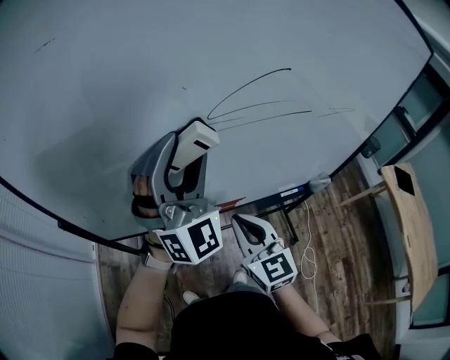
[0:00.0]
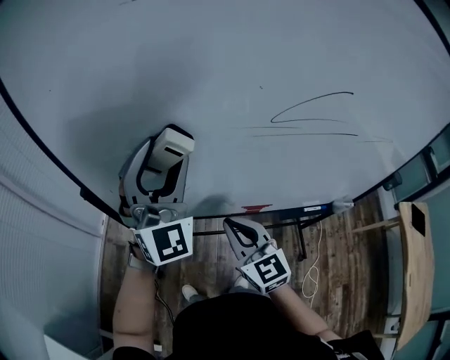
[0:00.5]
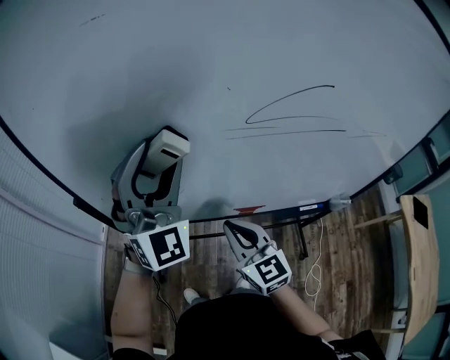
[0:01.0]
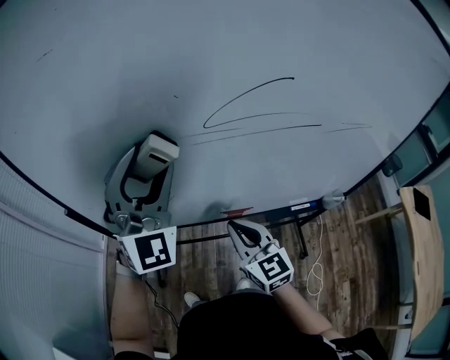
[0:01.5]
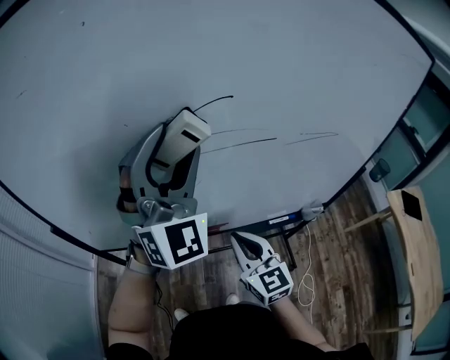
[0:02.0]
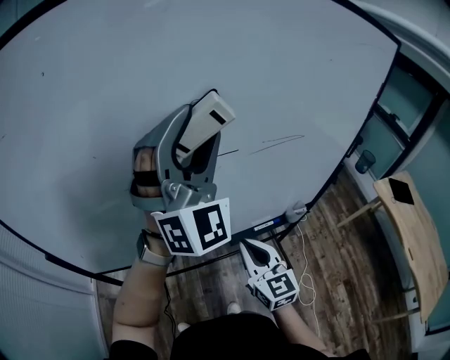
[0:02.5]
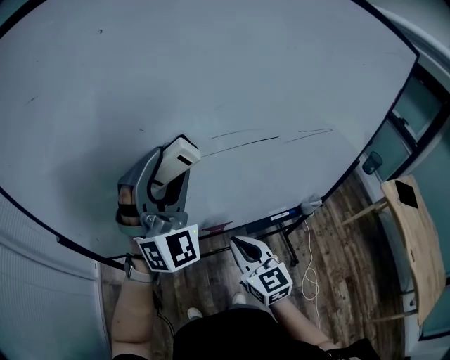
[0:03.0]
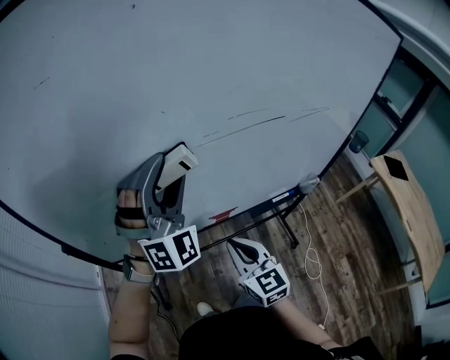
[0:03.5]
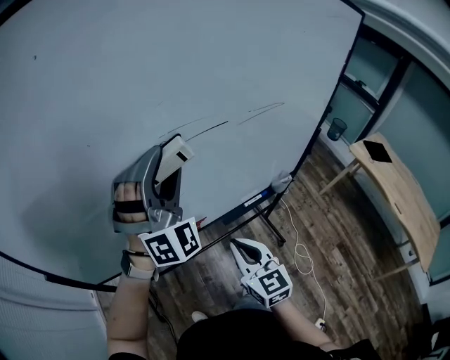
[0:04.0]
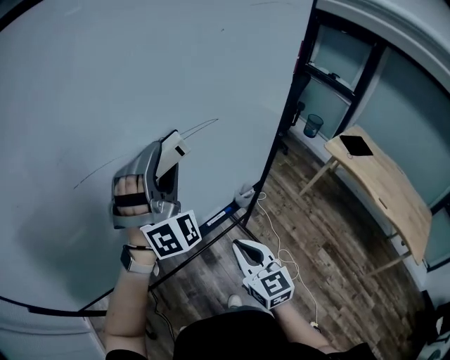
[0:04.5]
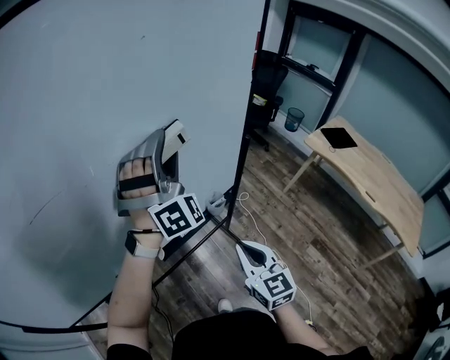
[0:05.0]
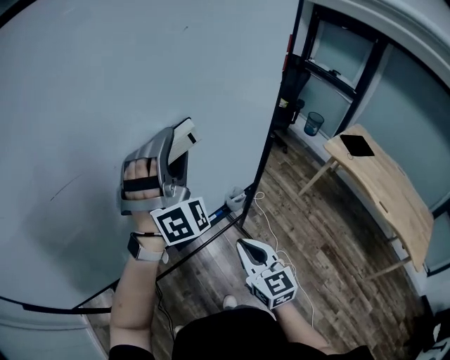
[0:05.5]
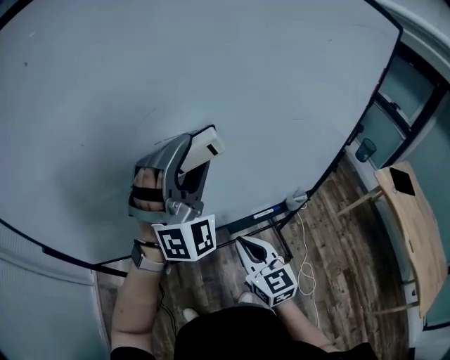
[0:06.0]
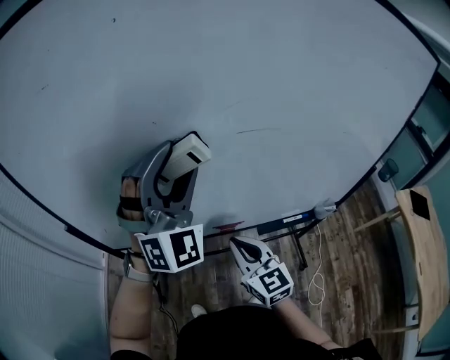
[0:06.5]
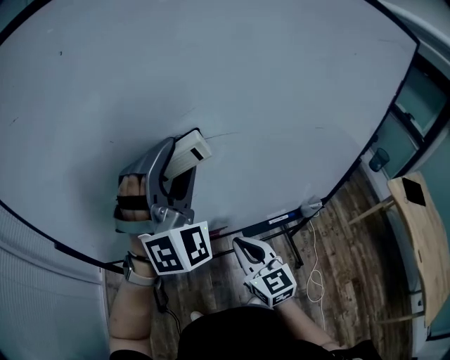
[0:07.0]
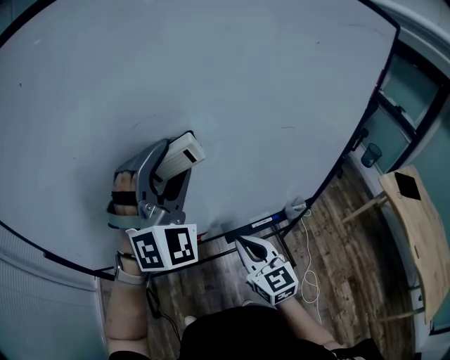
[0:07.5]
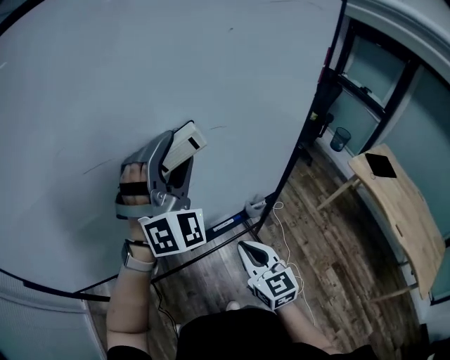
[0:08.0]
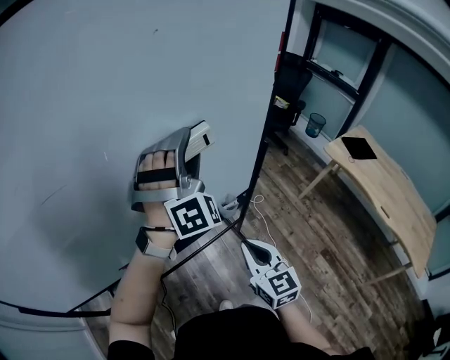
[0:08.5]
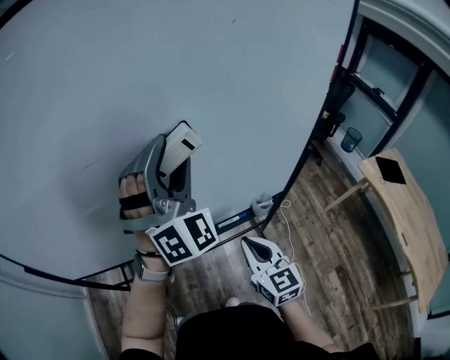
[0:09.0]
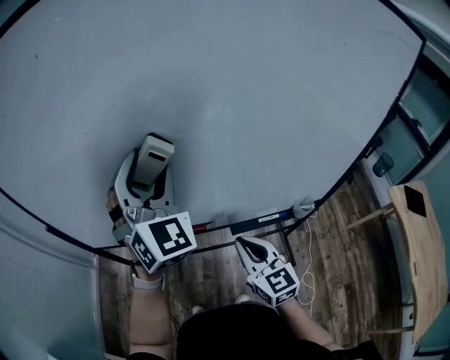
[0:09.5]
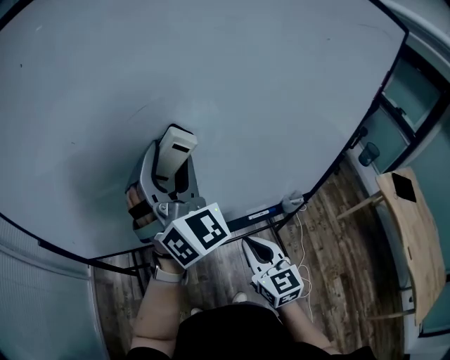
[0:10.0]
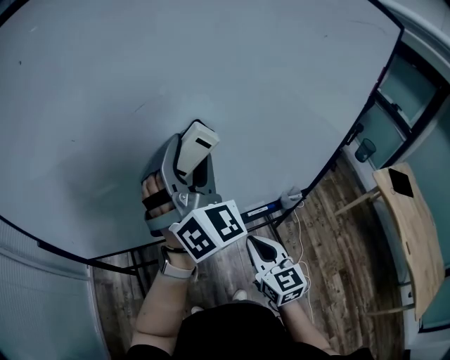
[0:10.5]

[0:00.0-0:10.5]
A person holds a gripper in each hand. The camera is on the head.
0:00.0 to 0:02.0: The right gripper is displaced to the right by about 10 cm, while the left gripper is displaced to the right and upward by about 10 cm.
0:02.0 to 0:04.0: The right gripper moves left and right over approximately 15 cm, changing direction 2 times; the left gripper swings left and right, about 20 cm each way, with 2 reversals, and turns by roughly 20 degrees.
0:04.0 to 0:06.5: The right gripper changes its angle by roughly 20 degrees.
0:06.5 to 0:08.5: Both grippers are carried to the right, roughly 40 cm. The right gripper changes its angle by roughly 30 degrees. The left gripper rotates about 20 degrees.
0:08.5 to 0:10.5: The left gripper changes place by about 30 cm, and turns by about 40 degrees. Meanwhile the right gripper changes place by roughly 20 cm.

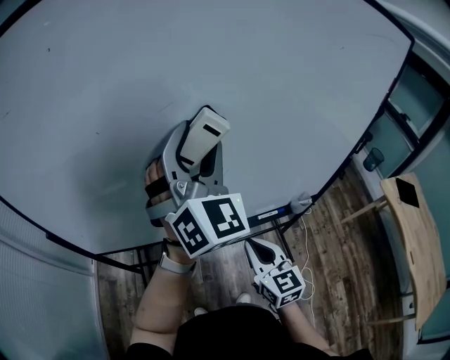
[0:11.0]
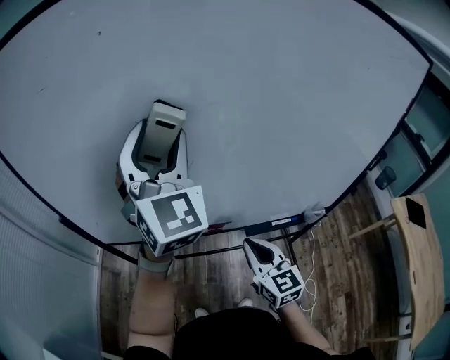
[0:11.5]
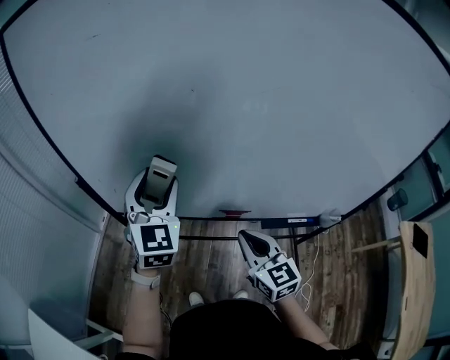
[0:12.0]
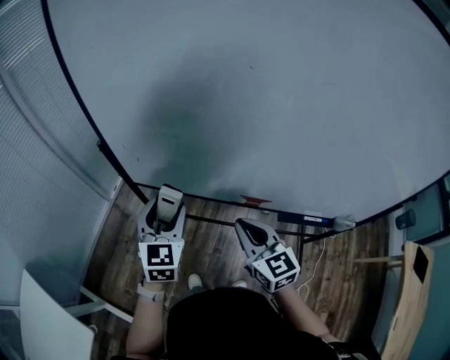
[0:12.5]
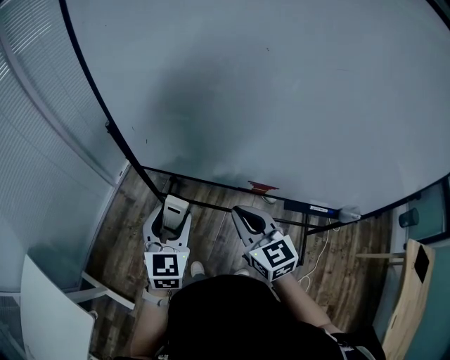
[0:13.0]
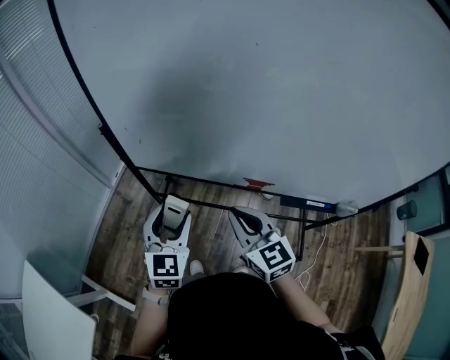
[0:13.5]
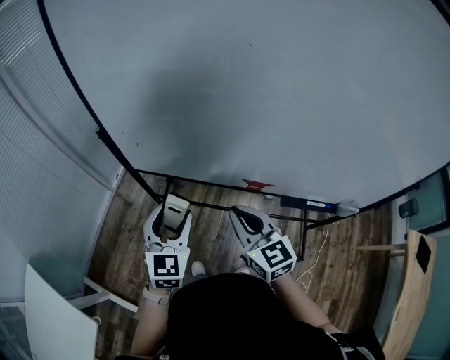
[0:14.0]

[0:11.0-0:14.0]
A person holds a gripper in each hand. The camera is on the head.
0:11.0 to 0:12.5: The left gripper moves to the left and downward, approximately 40 cm, and changes its angle by approximately 40 degrees, while the right gripper travels to the left by approximately 20 cm, and rotates approximately 30 degrees.
0:12.5 to 0:14.0: The left gripper moves backward, some 5 cm.

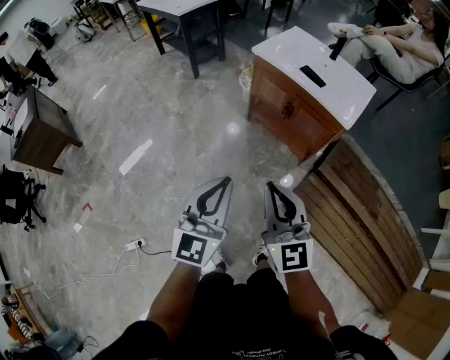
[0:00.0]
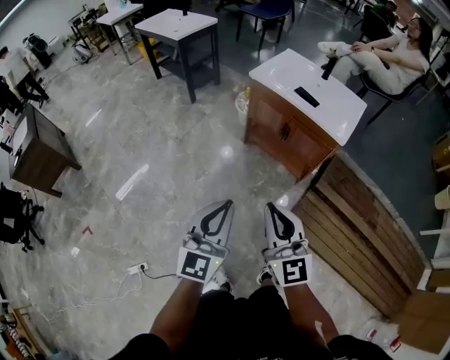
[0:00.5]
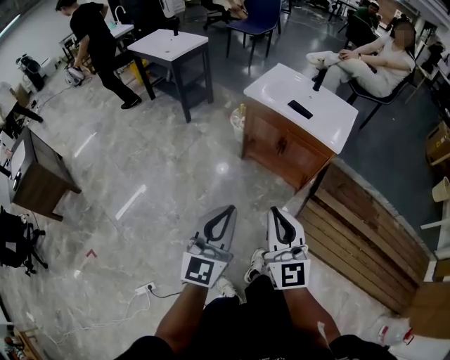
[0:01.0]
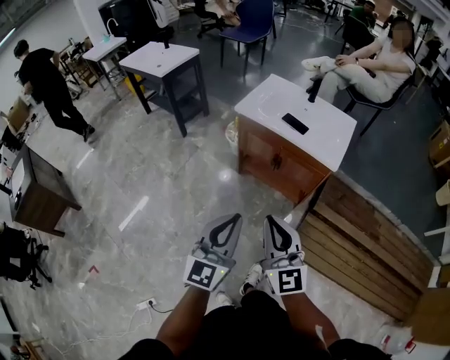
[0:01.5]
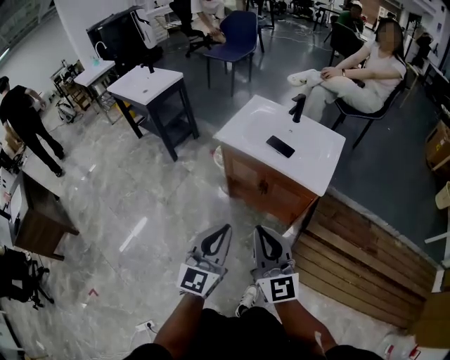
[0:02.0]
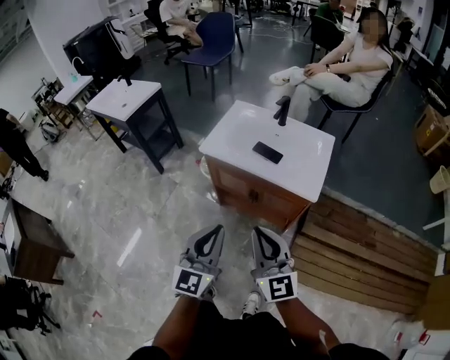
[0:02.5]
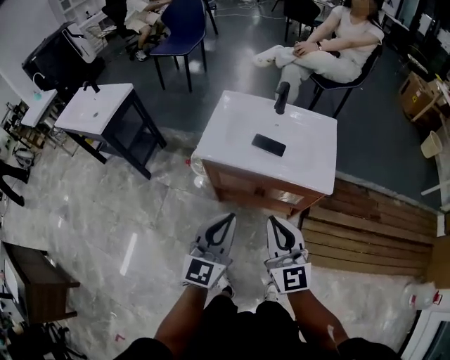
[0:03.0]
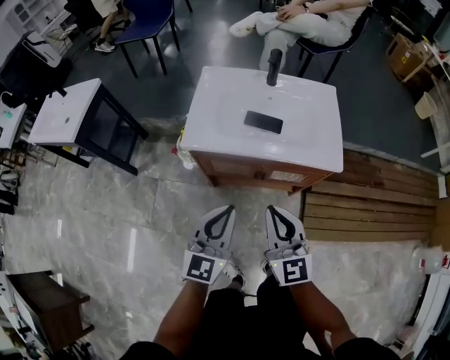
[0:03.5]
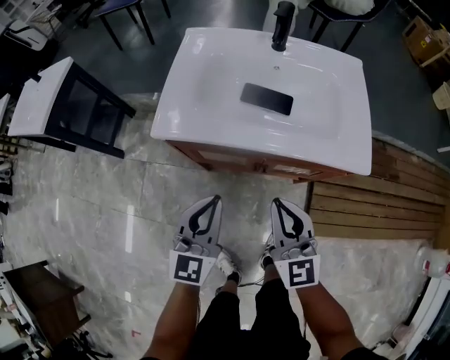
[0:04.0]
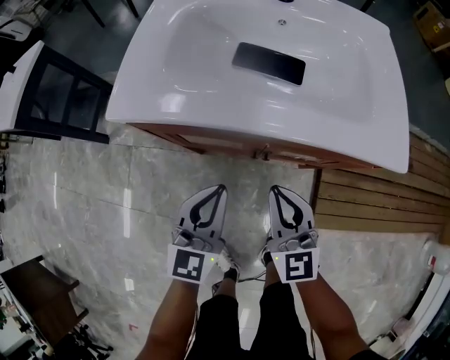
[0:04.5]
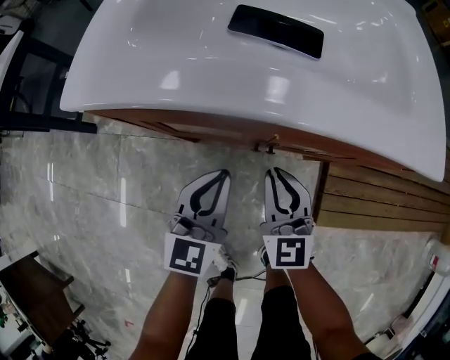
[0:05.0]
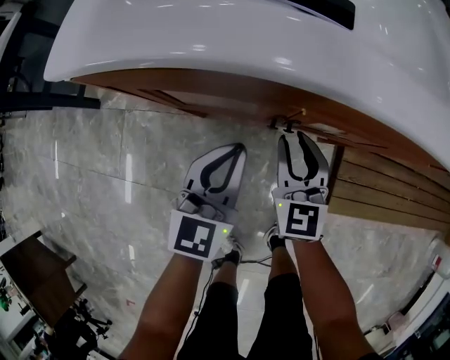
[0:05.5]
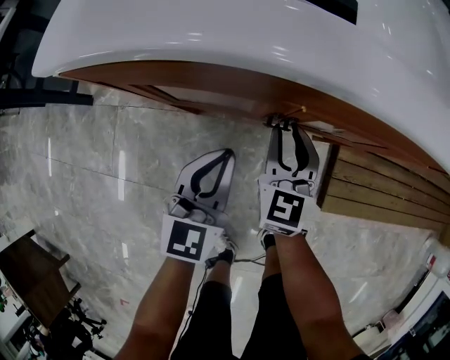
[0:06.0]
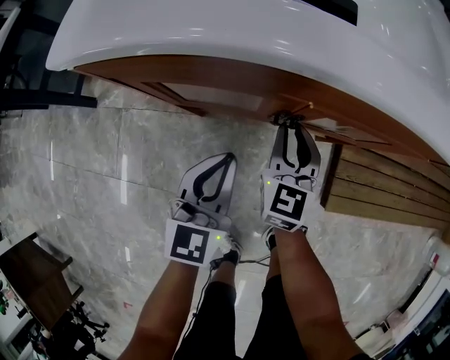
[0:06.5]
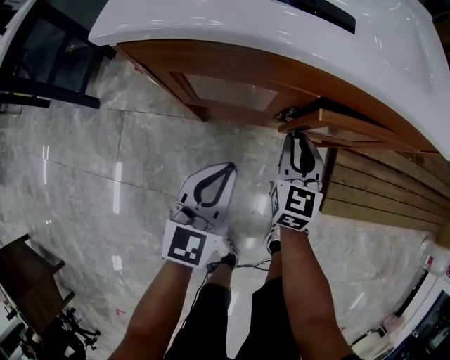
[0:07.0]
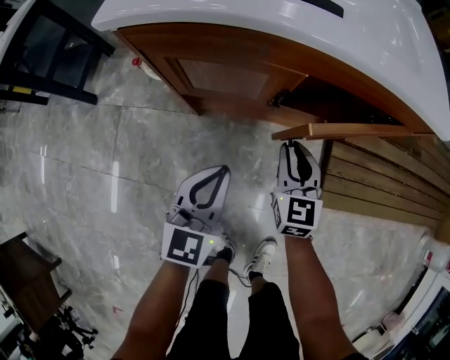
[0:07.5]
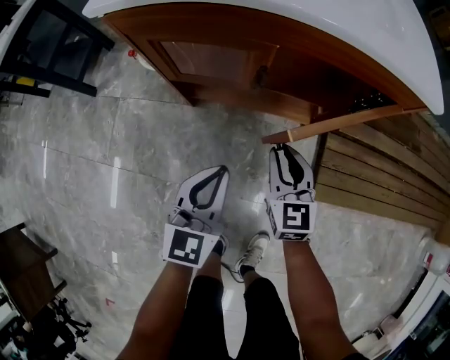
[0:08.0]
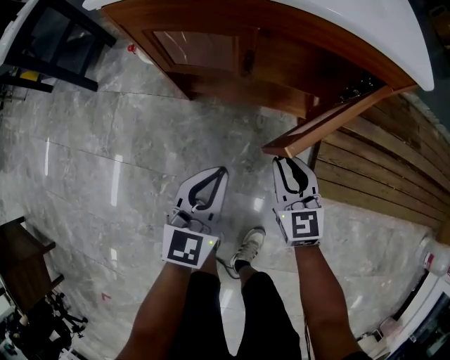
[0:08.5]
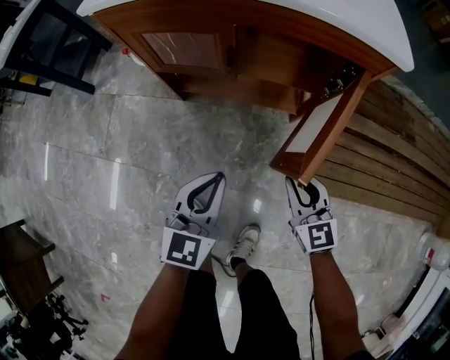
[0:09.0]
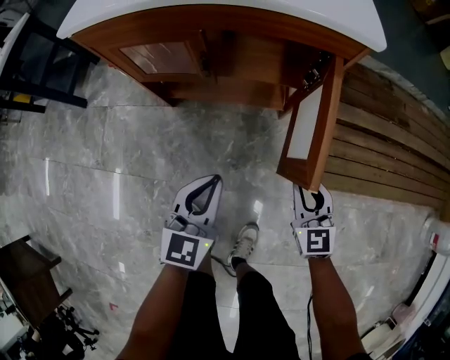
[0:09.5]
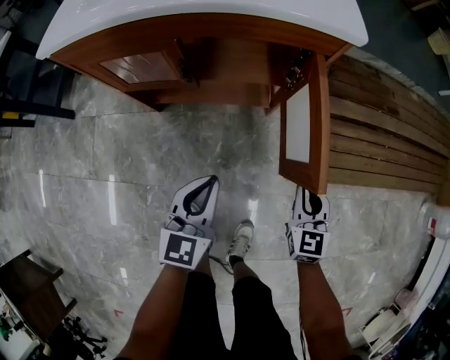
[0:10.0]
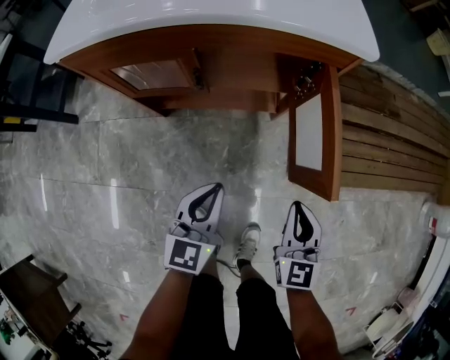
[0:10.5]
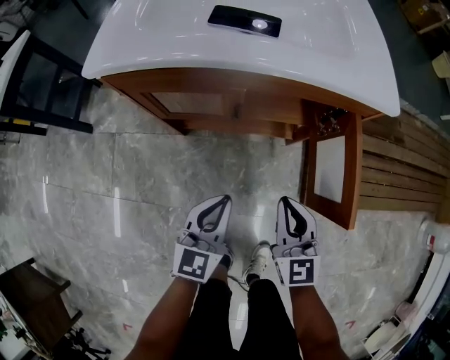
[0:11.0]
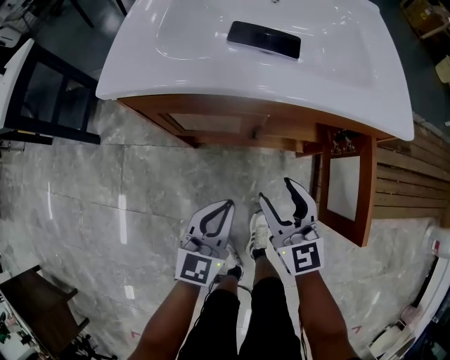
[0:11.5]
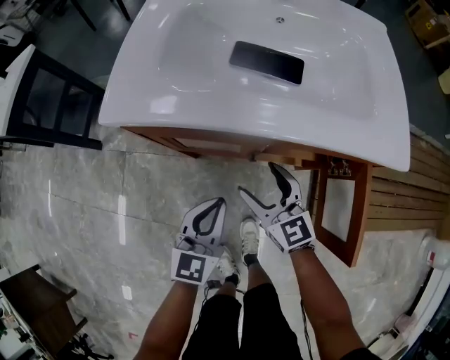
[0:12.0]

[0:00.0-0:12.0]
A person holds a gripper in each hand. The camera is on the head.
0:00.0 to 0:02.0: Both grippers travel together forward, about 15 cm.
0:02.0 to 0:04.0: Both grippers travel together forward and downward, roughly 40 cm. The right gripper turns by some 30 degrees. Meanwhile the left gripper swivels approximately 20 degrees.
0:04.0 to 0:06.0: Both grippers travel together downward, some 25 cm. The right gripper turns by about 20 degrees.
0:06.0 to 0:08.0: The right gripper is displaced backward and to the right by some 15 cm. The left gripper goes about 15 cm backward.
0:08.0 to 0:10.0: The left gripper shifts roughly 10 cm to the right. Meanwhile the right gripper is displaced to the right and backward by some 25 cm.
0:10.0 to 0:12.0: The left gripper shifts approximately 20 cm to the left and forward; the right gripper heads to the left and forward, covering approximately 35 cm, swivels some 40 degrees, and opens.

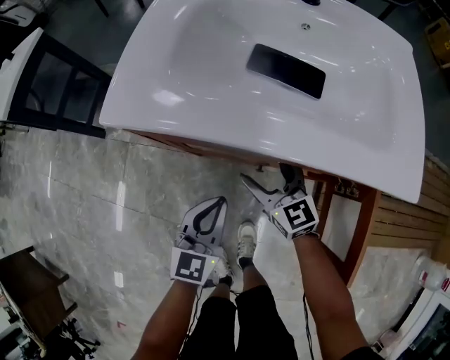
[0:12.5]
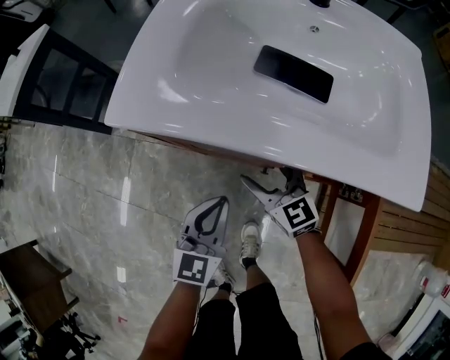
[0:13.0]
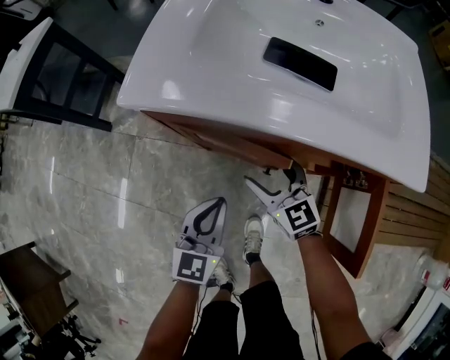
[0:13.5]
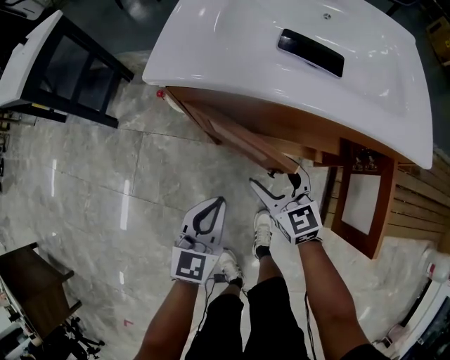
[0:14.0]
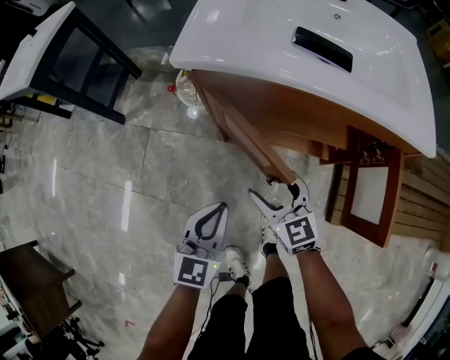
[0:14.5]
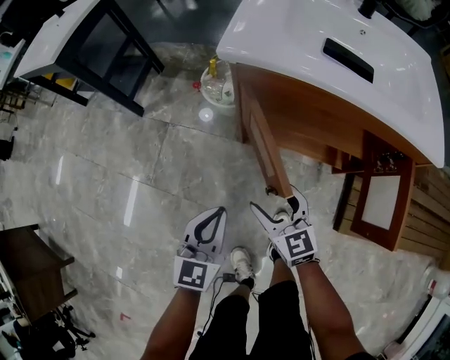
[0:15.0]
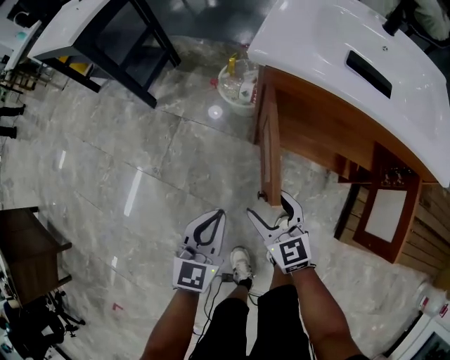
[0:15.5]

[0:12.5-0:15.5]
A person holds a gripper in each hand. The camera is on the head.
0:12.5 to 0:14.0: The right gripper moves backward and to the left, about 10 cm; the left gripper shifts about 10 cm to the left and backward.
0:14.0 to 0:15.5: Both grippers move to the left and backward, about 15 cm.
